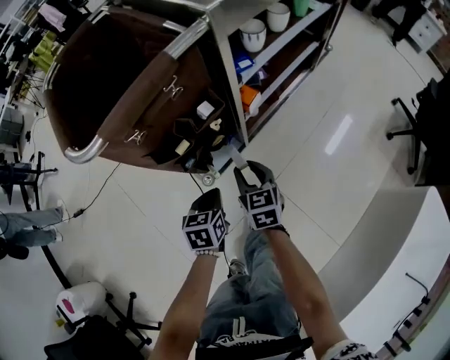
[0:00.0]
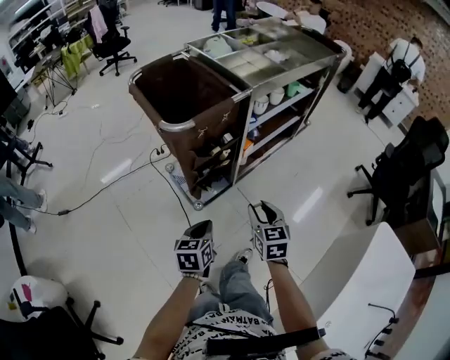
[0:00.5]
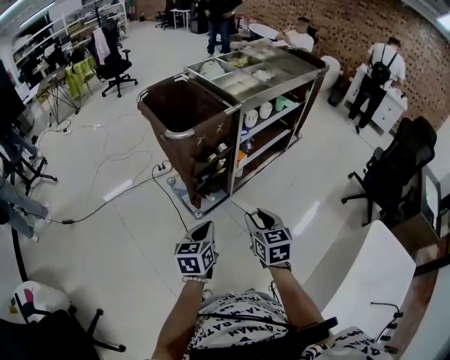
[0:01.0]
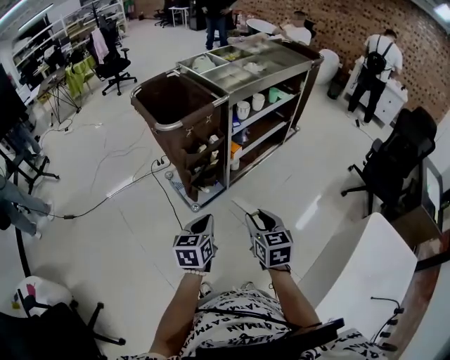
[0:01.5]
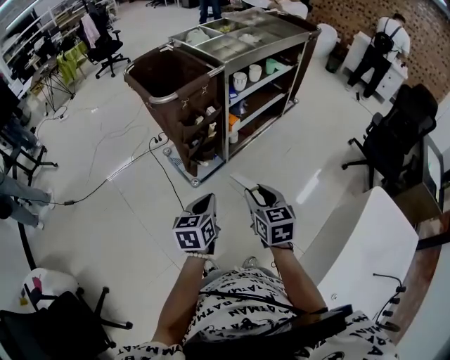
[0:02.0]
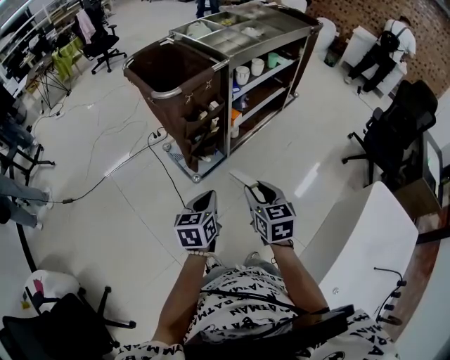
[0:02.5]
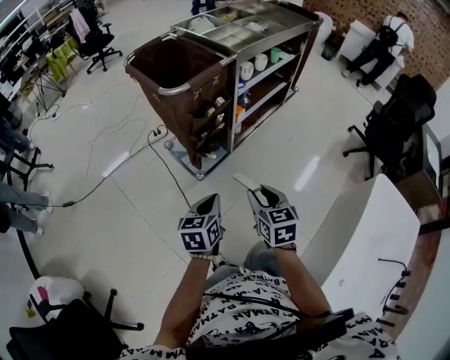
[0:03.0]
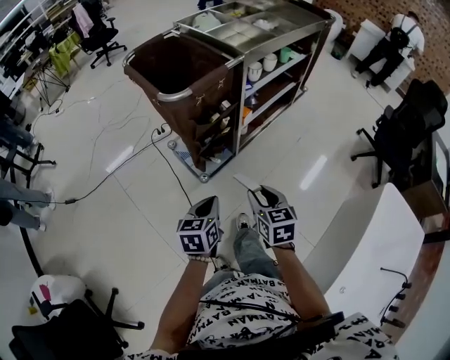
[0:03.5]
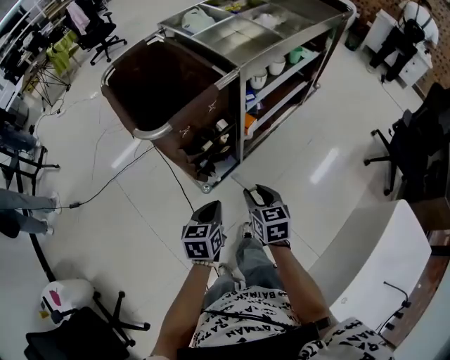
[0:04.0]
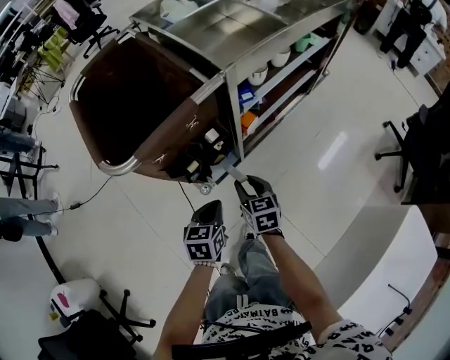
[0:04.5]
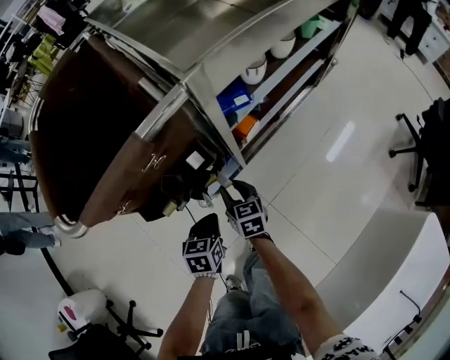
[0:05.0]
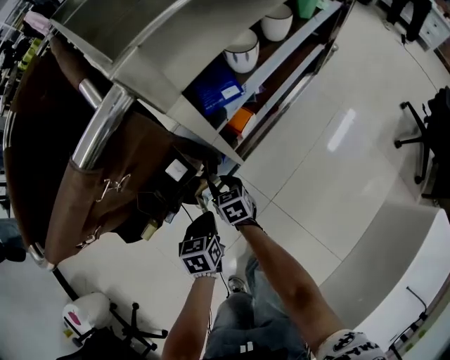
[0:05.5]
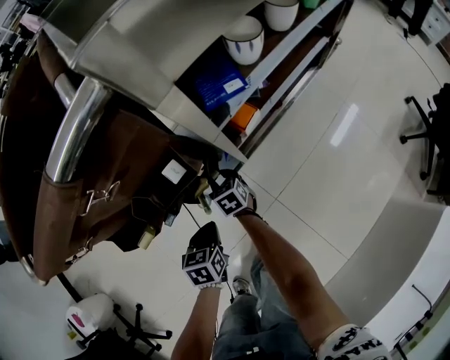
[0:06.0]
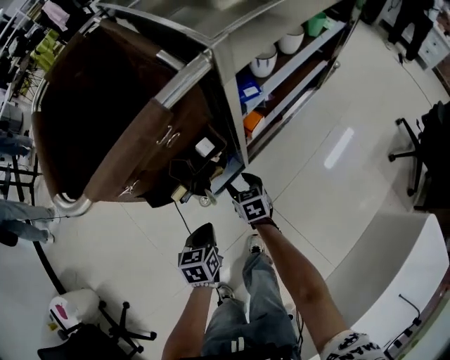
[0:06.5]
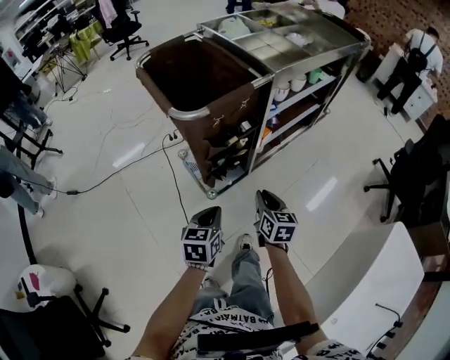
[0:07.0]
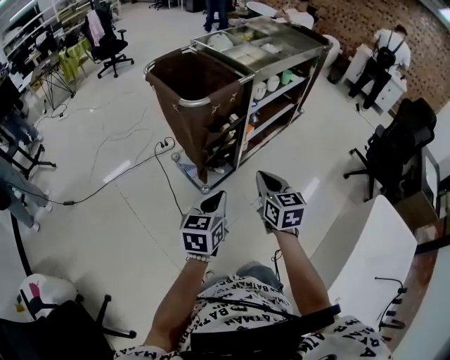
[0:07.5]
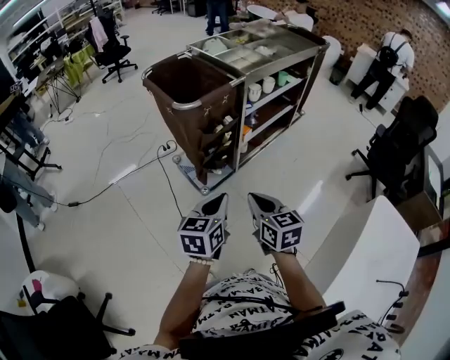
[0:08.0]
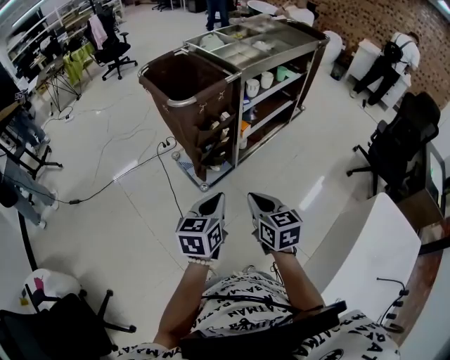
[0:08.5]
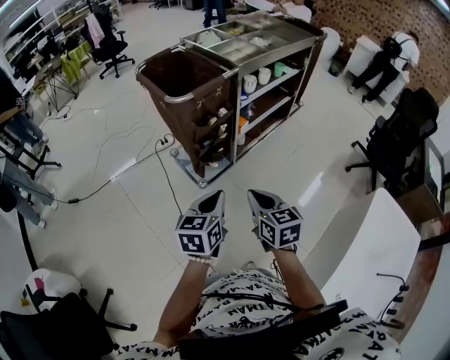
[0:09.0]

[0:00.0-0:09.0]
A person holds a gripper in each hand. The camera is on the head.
0:00.0 to 0:02.0: The left gripper moves upward and backward, about 35 cm, and turns by some 20 degrees, while the right gripper is displaced backward and upward by some 40 cm.
0:02.0 to 0:04.5: Both grippers travel together forward and downward, roughly 35 cm.
0:04.5 to 0:07.0: The right gripper shifts approximately 10 cm backward, reaches about 25 cm downward, then returns, and opens, then closes once more, while the left gripper shifts roughly 15 cm backward and to the left, and goes downward and returns, some 20 cm each way.
0:07.0 to 0:09.0: The right gripper goes some 25 cm backward and upward, while the left gripper travels upward and backward by roughly 20 cm.

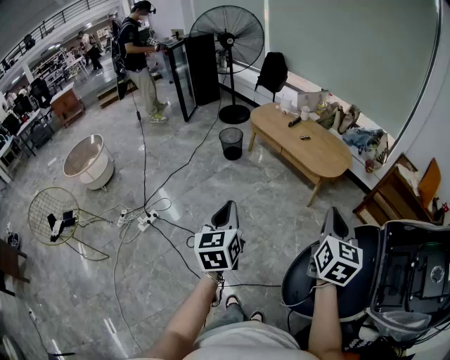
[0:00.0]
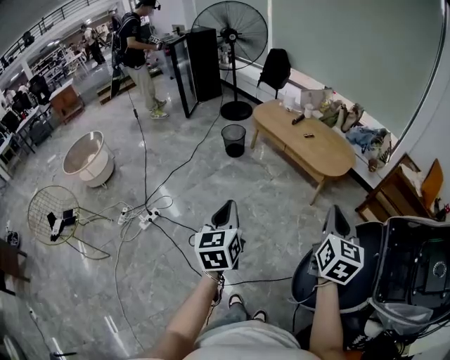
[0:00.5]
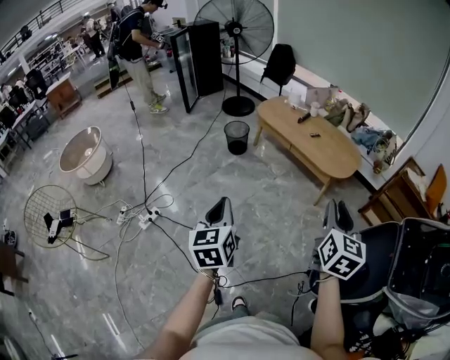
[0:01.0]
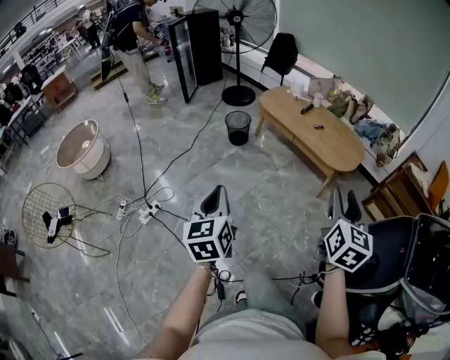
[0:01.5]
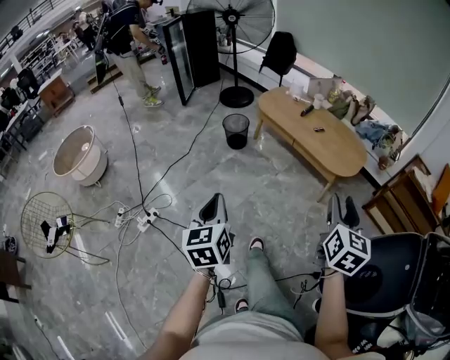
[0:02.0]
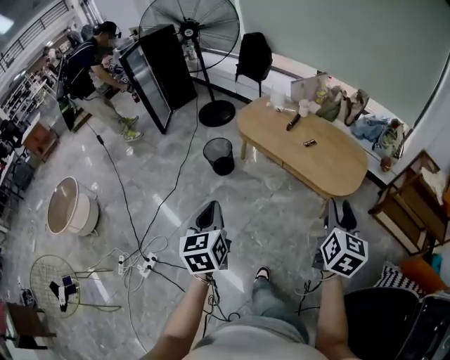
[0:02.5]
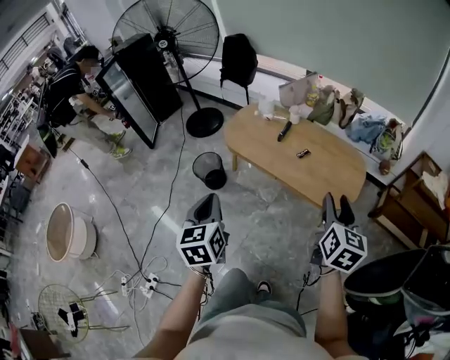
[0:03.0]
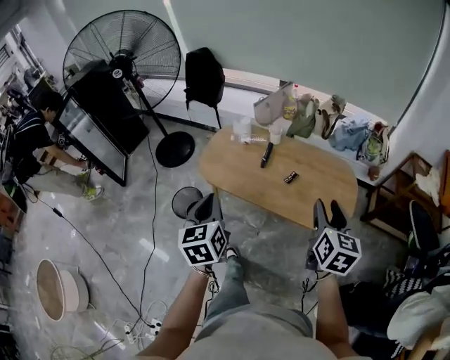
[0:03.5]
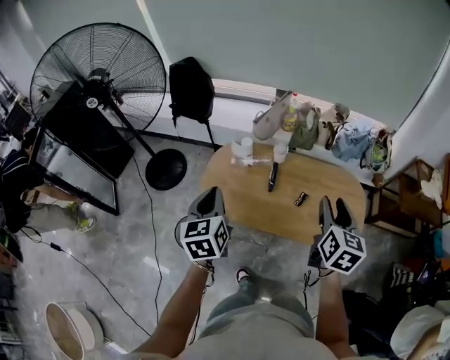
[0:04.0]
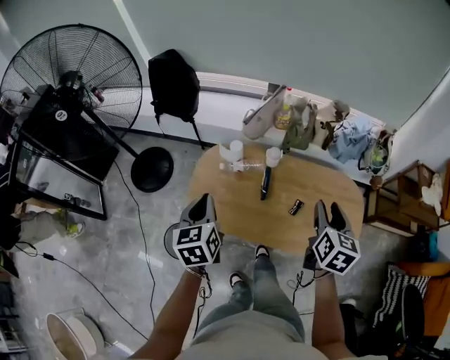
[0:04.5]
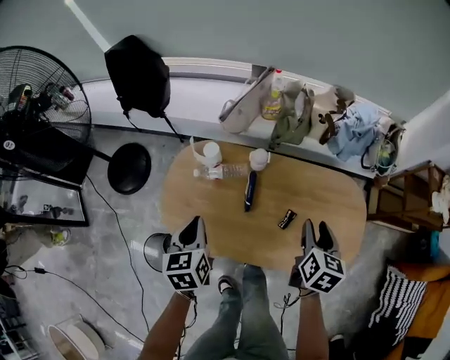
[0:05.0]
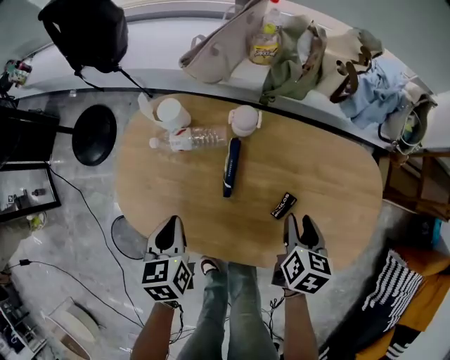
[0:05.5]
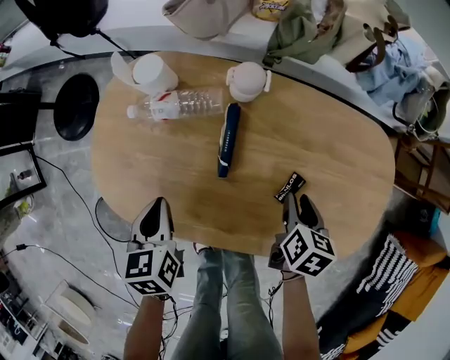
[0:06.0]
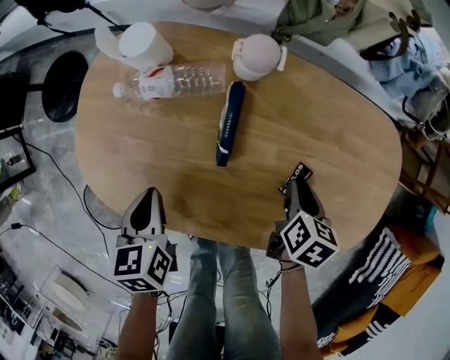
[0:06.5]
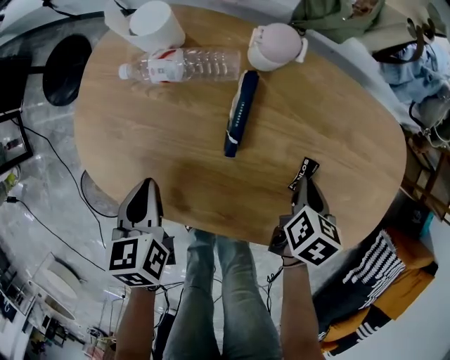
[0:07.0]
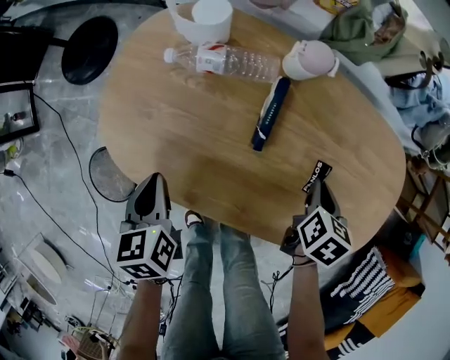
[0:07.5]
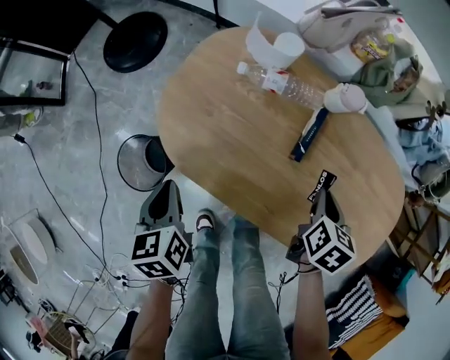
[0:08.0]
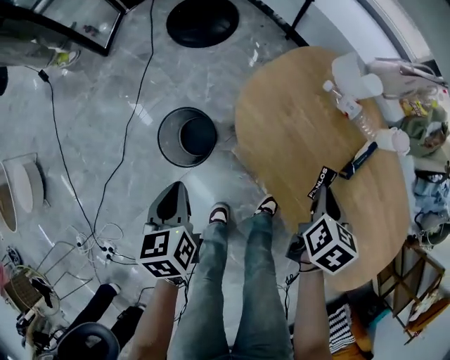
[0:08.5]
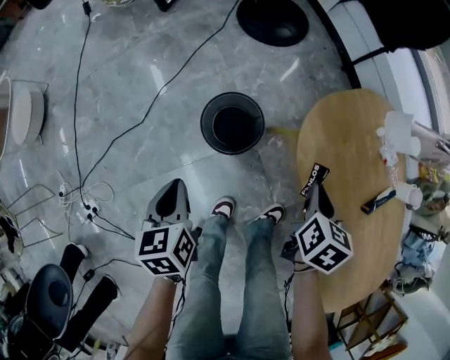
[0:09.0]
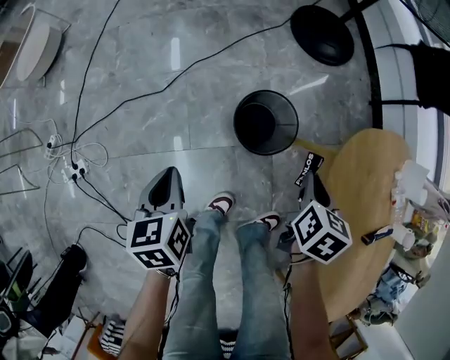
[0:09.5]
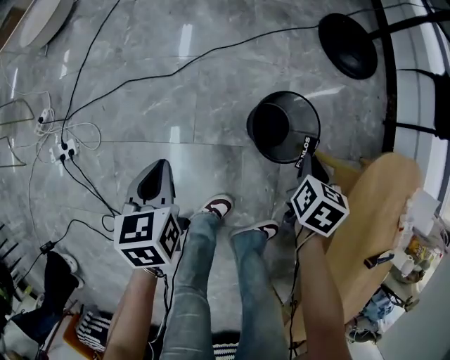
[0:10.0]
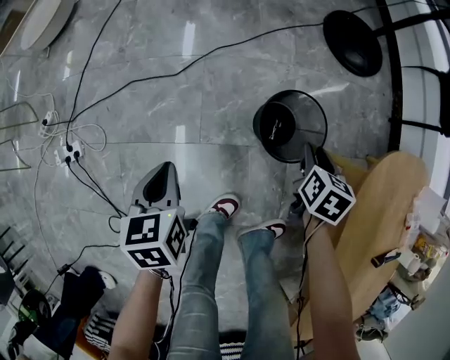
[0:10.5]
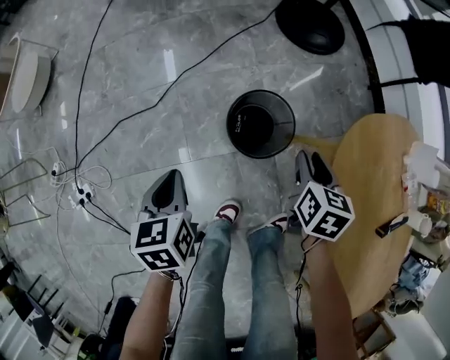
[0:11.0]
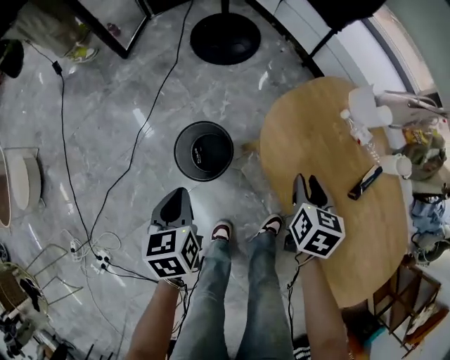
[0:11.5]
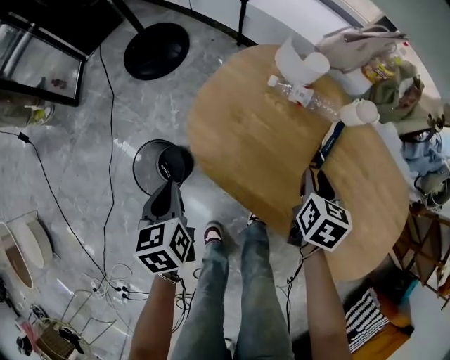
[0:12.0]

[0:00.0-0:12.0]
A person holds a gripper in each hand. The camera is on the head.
0:00.0 to 0:02.0: The right gripper shifts about 20 cm forward and to the left, and opens up. The left gripper shifts some 20 cm to the left and forward.
0:02.0 to 0:04.0: The two grippers travel together, about 80 cm. The right gripper turns by approximately 30 degrees; the left gripper rotates roughly 30 degrees.
0:04.0 to 0:06.0: The two grippers go approximately 50 cm downward. The left gripper changes its angle by approximately 30 degrees. The right gripper points its fingers roughly 40 degrees further downward.
0:06.0 to 0:08.0: The right gripper travels to the left and upward by roughly 10 cm, and closes up, while the left gripper moves to the left and backward, about 15 cm, and swivels some 20 degrees.
0:08.0 to 0:10.0: The left gripper ends up roughly 50 cm from where it was, and turns by approximately 50 degrees; the right gripper changes place by about 60 cm, and rotates around the line of its fingers by approximately 60 degrees, counterclockwise from behind.
0:10.0 to 0:12.0: The left gripper ends up some 40 cm from where it was, and swivels approximately 50 degrees; the right gripper shifts by roughly 50 cm, changes its angle by some 50 degrees, and opens.

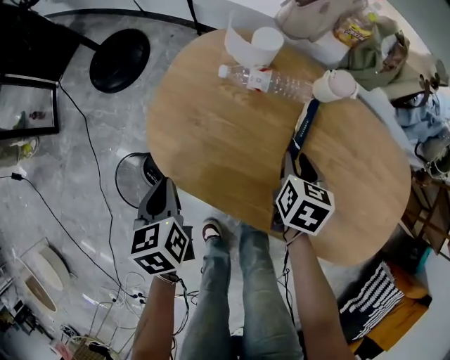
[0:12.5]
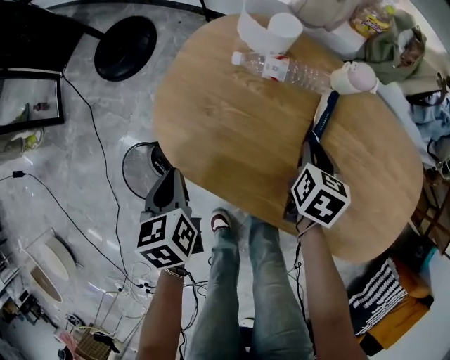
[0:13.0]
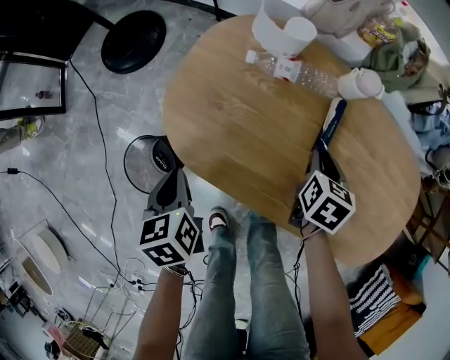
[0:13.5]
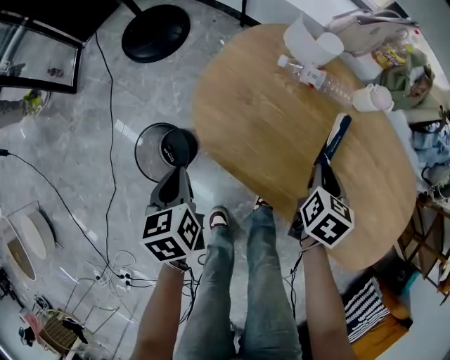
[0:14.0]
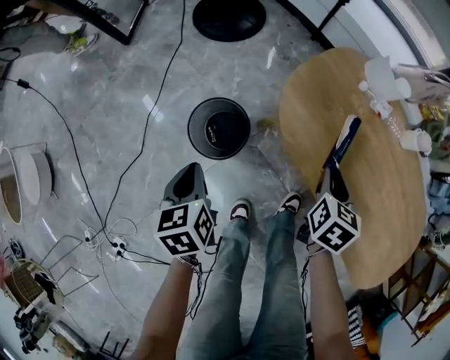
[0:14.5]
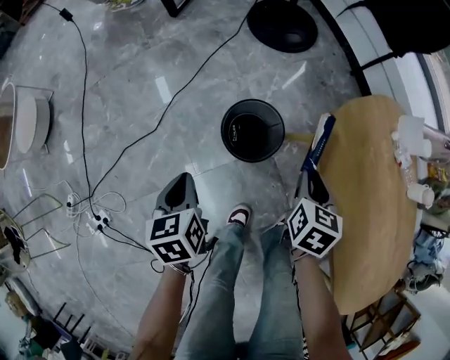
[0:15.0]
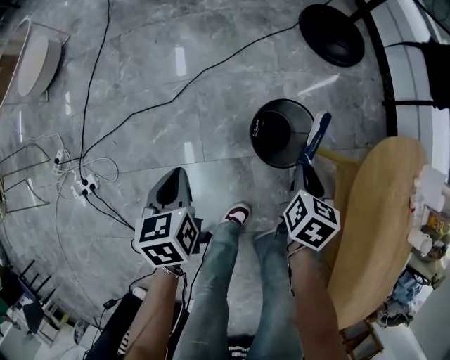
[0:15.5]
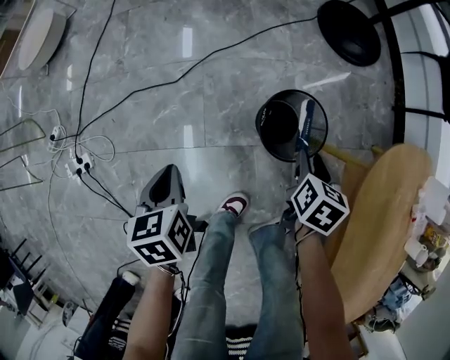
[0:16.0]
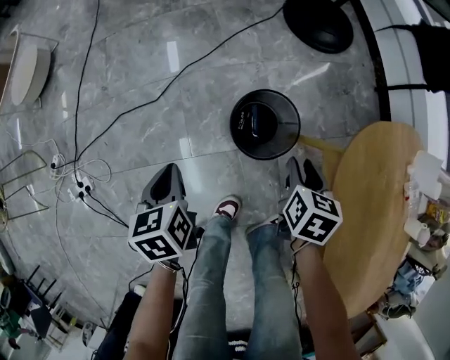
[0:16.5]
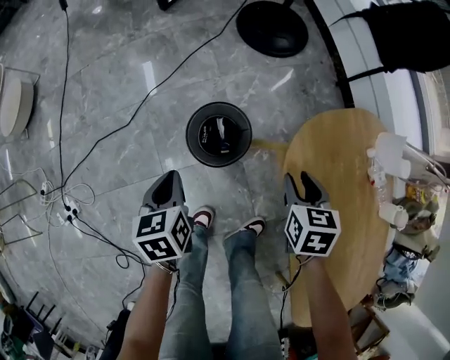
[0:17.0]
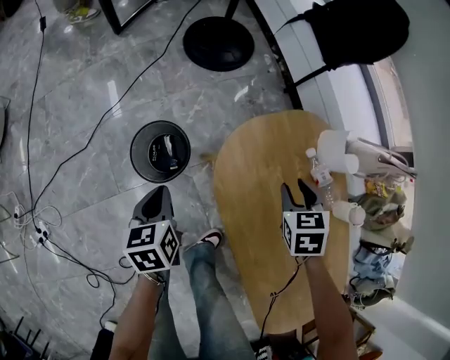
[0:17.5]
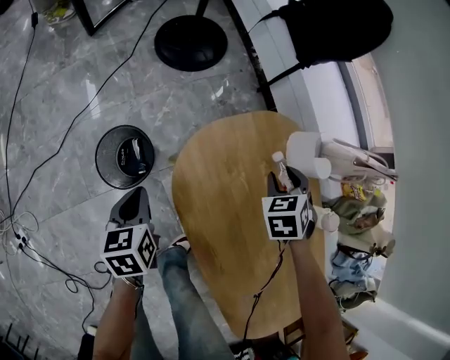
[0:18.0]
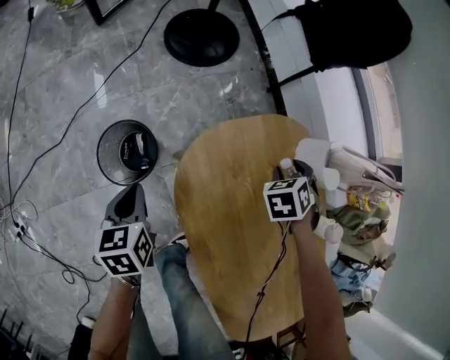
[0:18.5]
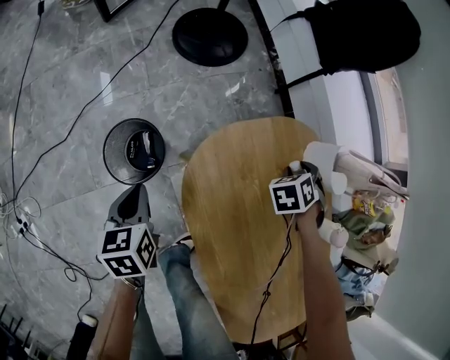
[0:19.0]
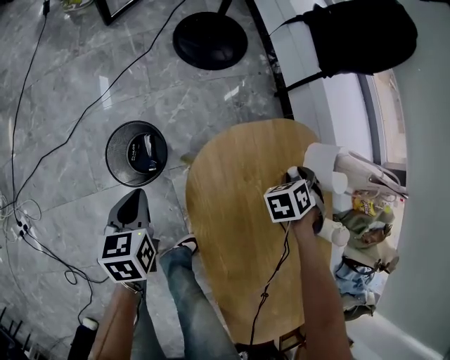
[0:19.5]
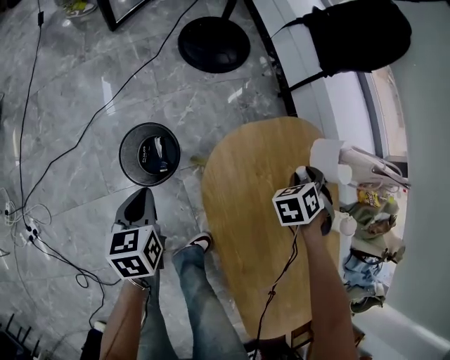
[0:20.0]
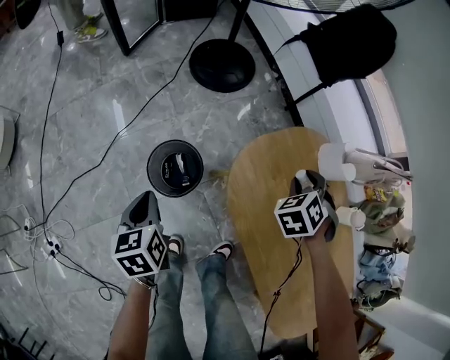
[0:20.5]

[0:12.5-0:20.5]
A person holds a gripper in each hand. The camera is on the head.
0:12.5 to 0:14.5: The two grippers go about 25 cm to the left and backward. The left gripper changes its angle by roughly 20 degrees.
0:14.5 to 0:16.5: The left gripper changes place by roughly 20 cm, and rotates roughly 30 degrees; the right gripper shifts by about 25 cm, and turns by some 40 degrees.
0:16.5 to 0:18.5: The right gripper shifts by about 40 cm, and swivels about 50 degrees. The left gripper shifts by some 35 cm.
0:18.5 to 0:20.5: The right gripper shifts about 15 cm upward, backward and to the left, while the left gripper moves to the left, backward and upward, some 15 cm.
